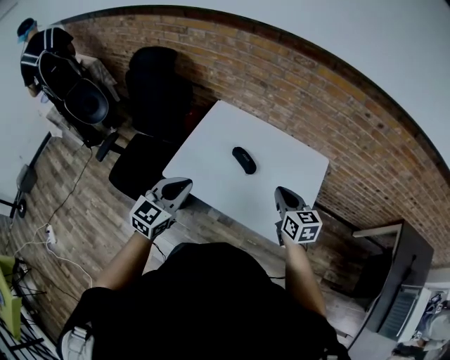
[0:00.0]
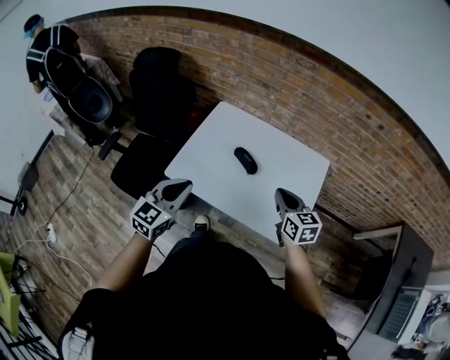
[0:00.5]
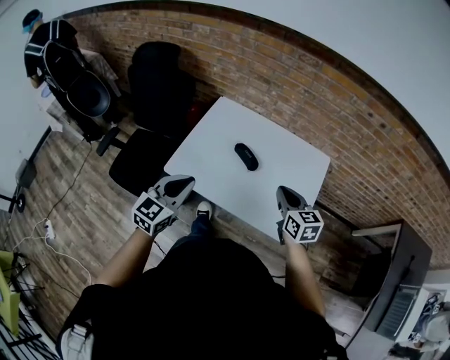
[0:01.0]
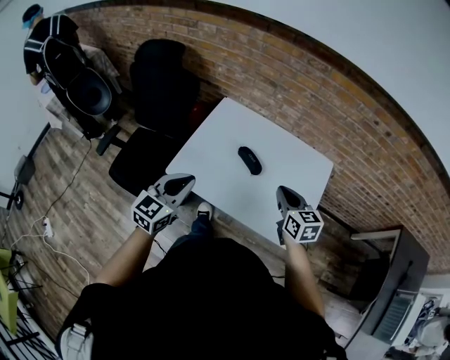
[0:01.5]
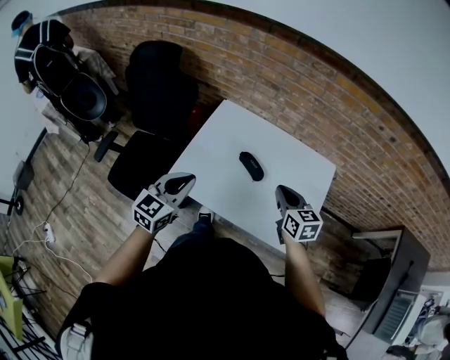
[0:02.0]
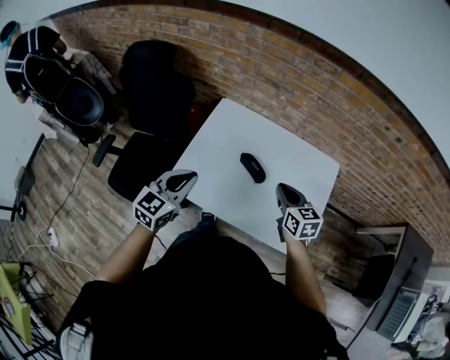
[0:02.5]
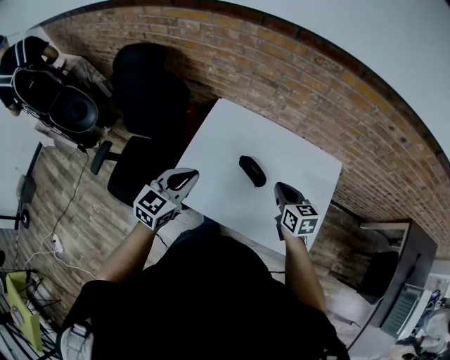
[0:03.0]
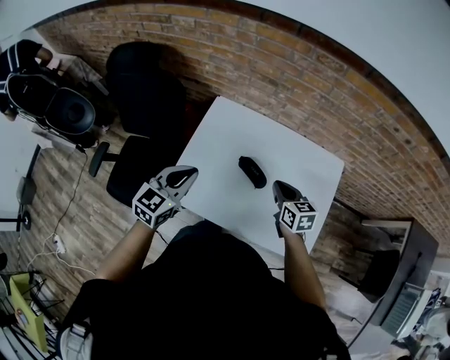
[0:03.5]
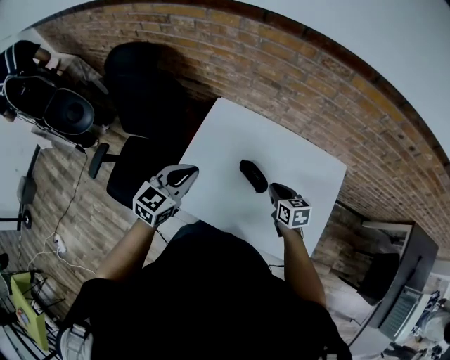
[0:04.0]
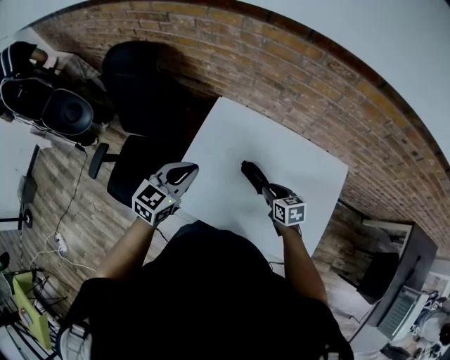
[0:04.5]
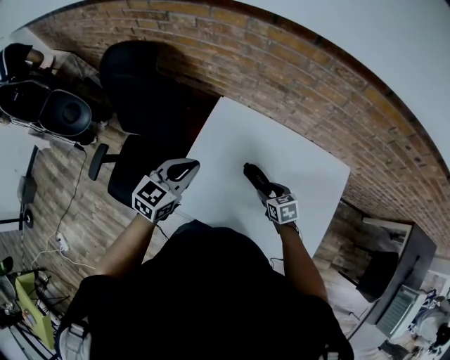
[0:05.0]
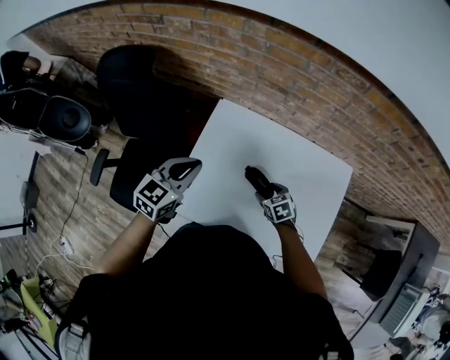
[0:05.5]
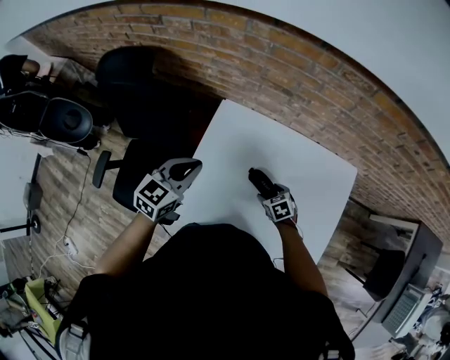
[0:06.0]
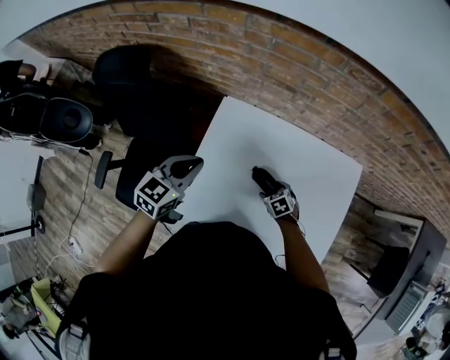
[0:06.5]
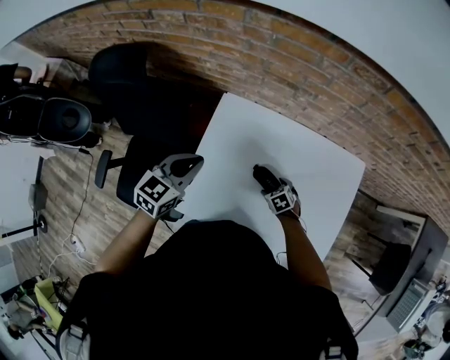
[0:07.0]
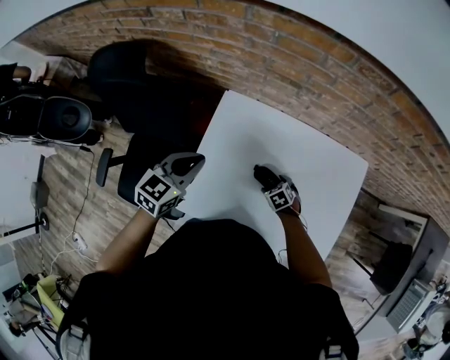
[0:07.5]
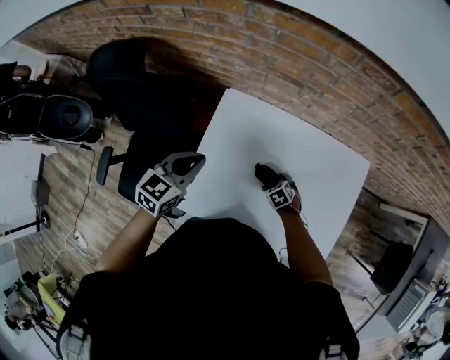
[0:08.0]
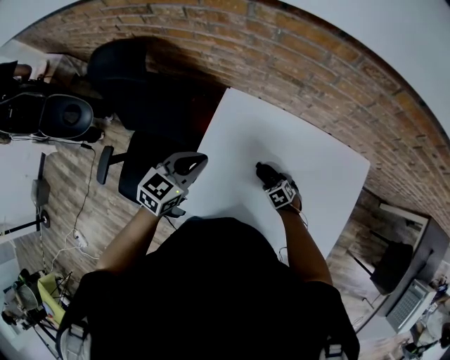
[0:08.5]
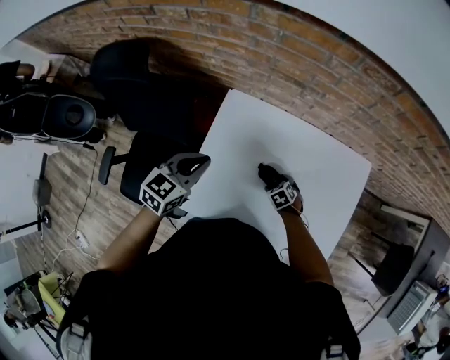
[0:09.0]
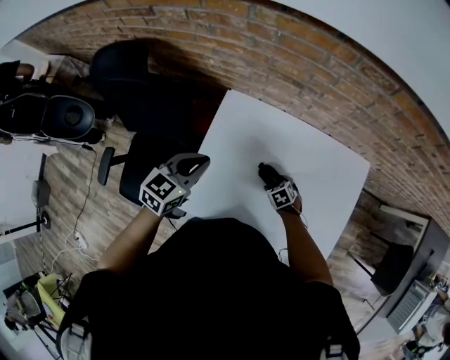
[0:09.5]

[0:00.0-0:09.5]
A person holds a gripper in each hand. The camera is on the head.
0:00.0 to 0:02.0: The left gripper travels forward by roughly 5 cm, while the right gripper goes approximately 10 cm forward and to the left.
0:02.0 to 0:04.0: The left gripper travels forward by roughly 15 cm. Meanwhile the right gripper travels downward and forward by roughly 20 cm.
0:04.0 to 0:05.5: The left gripper moves forward, approximately 10 cm; the right gripper travels downward by approximately 10 cm, swivels roughly 20 degrees, and opens its fingers.
0:05.5 to 0:07.5: The left gripper changes place by some 5 cm. Meanwhile the right gripper heads downward, covering about 10 cm.
0:07.5 to 0:09.5: Both grippers stay about where they are.

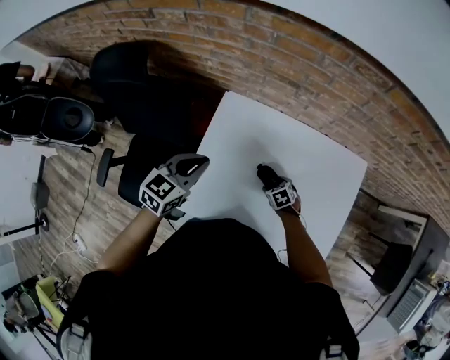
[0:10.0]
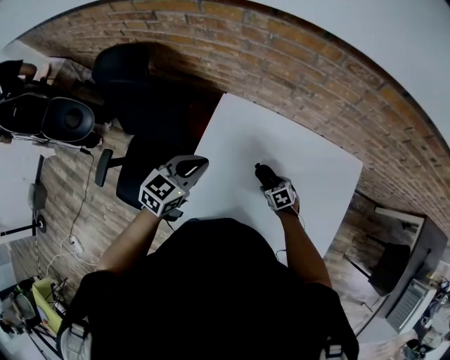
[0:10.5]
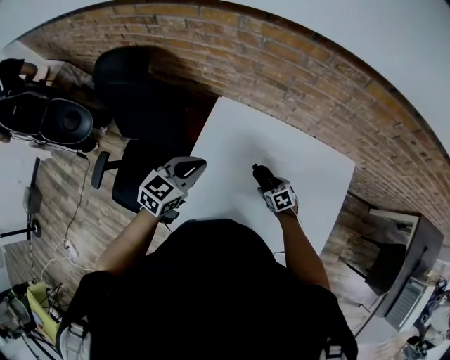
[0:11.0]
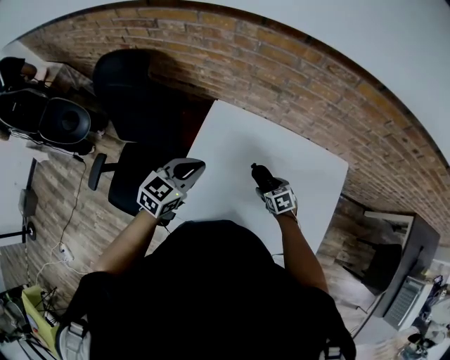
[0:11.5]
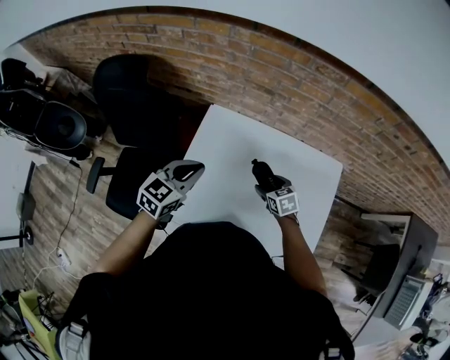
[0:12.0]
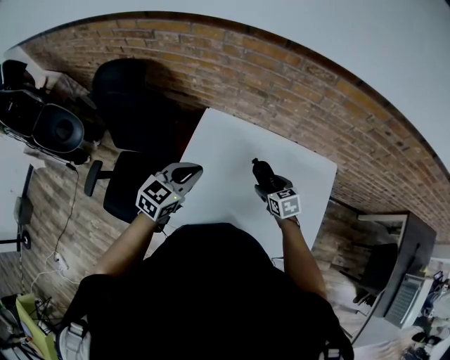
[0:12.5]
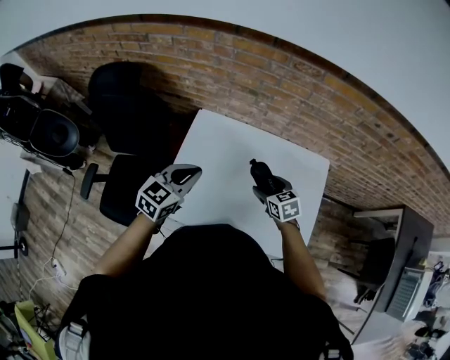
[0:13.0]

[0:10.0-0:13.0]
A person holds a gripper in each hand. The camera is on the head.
0:10.0 to 0:11.5: The left gripper changes place by about 5 cm; the right gripper moves upward, approximately 10 cm.
0:11.5 to 0:13.0: The left gripper moves approximately 5 cm, while the right gripper is displaced upward by approximately 15 cm.

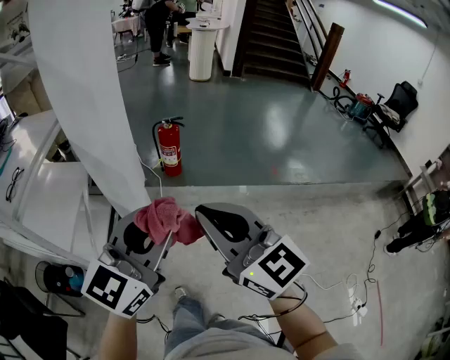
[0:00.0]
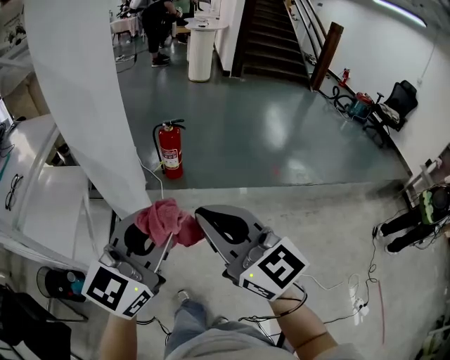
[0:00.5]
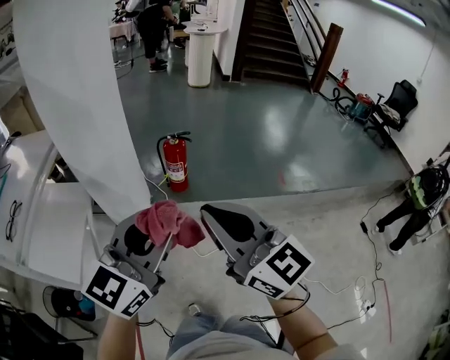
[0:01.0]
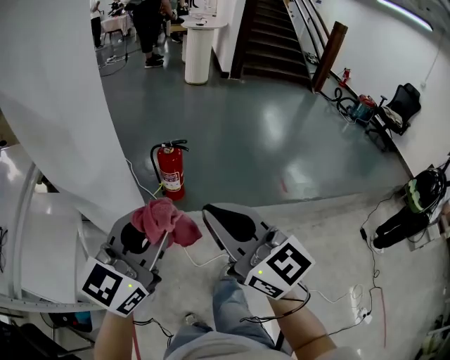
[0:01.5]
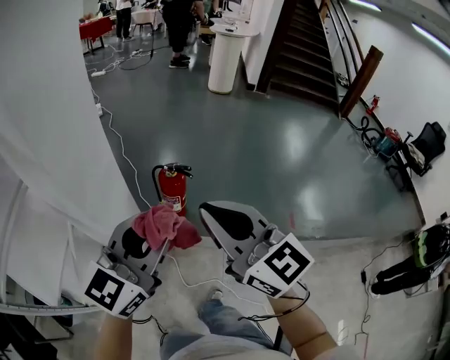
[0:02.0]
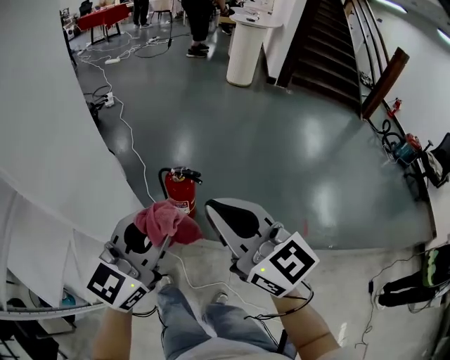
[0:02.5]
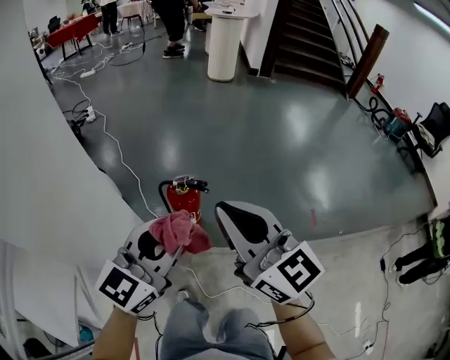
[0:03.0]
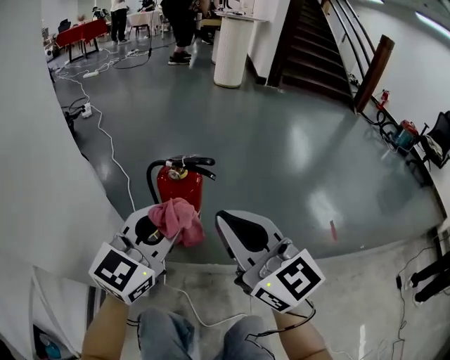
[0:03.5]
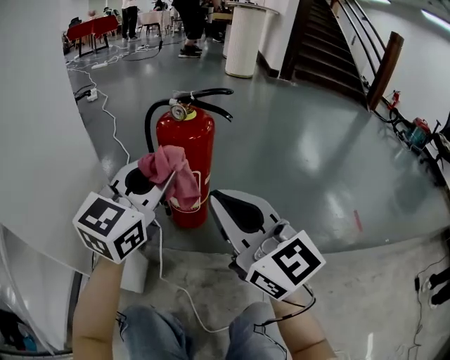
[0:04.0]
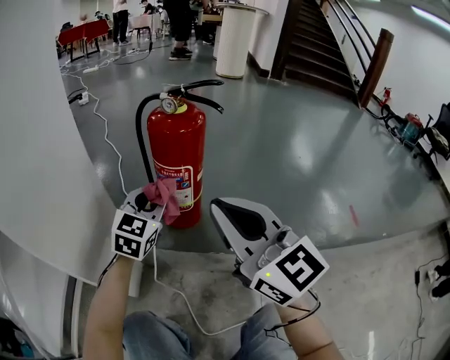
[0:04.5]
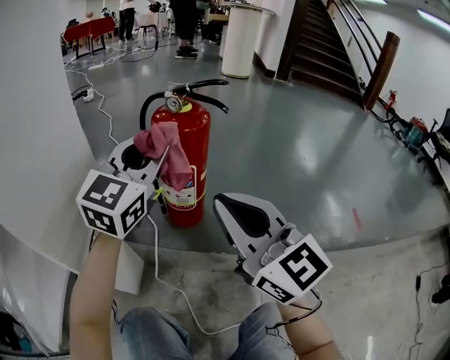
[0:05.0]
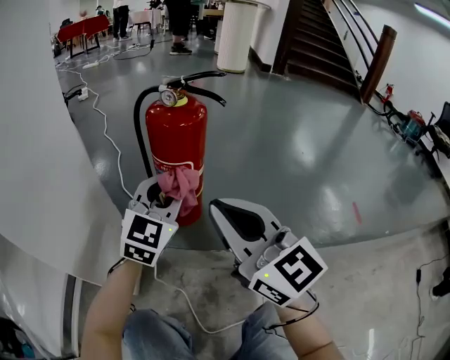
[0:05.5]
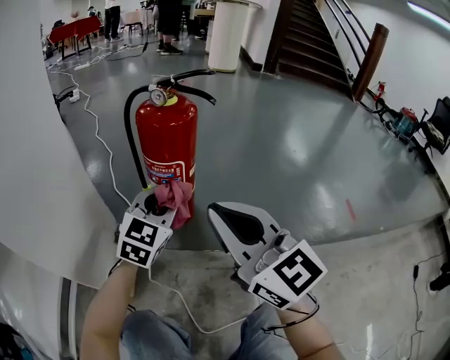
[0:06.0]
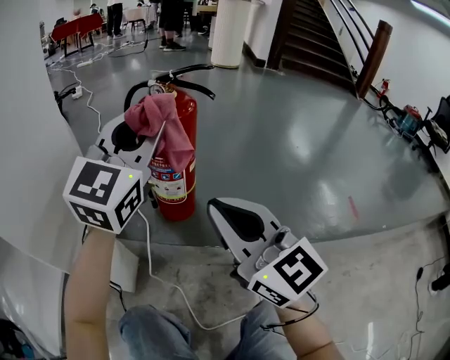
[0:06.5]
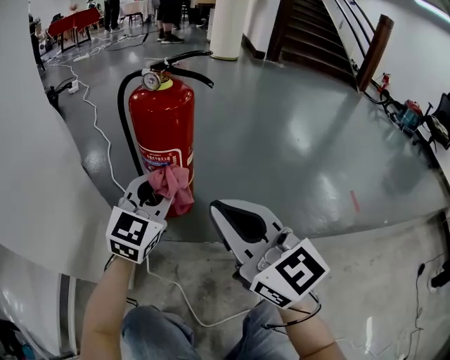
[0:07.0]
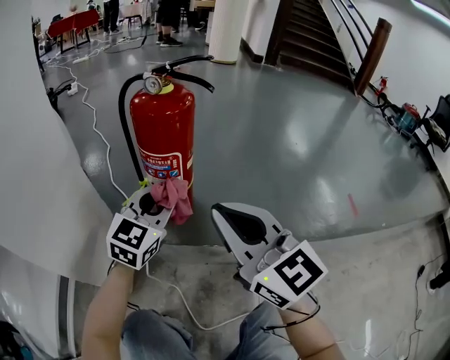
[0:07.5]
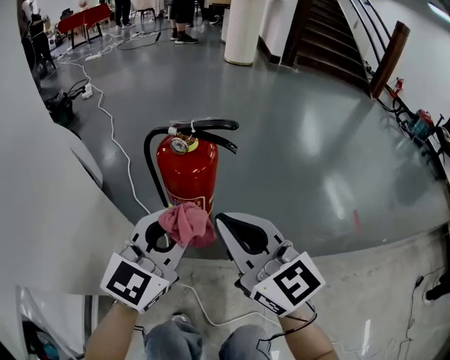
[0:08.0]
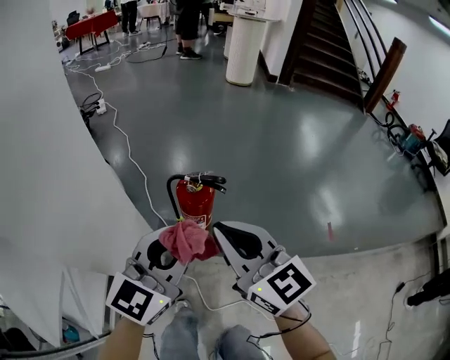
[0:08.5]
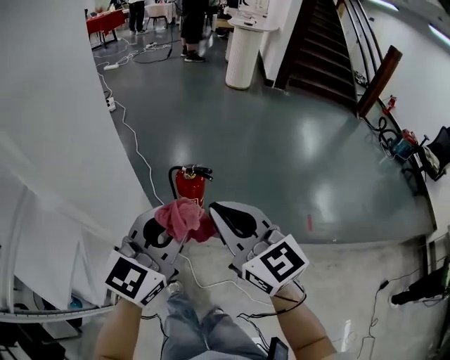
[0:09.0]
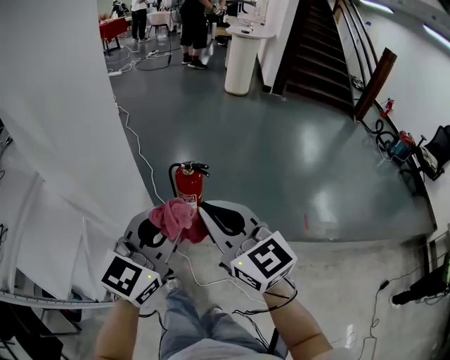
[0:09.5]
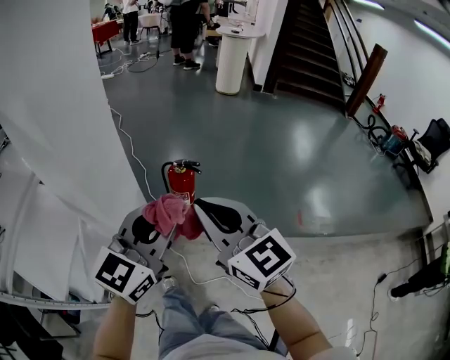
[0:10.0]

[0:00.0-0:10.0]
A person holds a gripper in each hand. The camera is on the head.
0:00.0 to 0:02.0: Both grippers travel together forward, some 35 cm.
0:02.0 to 0:04.0: The two grippers go roughly 50 cm downward and forward.
0:04.0 to 0:06.0: The left gripper moves up and down over about 15 cm, changing direction 2 times. The right gripper shifts by about 5 cm.
0:06.0 to 0:08.0: The right gripper moves upward, about 5 cm; the left gripper goes up and down, approximately 20 cm each way, reversing 2 times.
0:08.0 to 0:10.0: The grippers both shift upward and backward by approximately 50 cm.

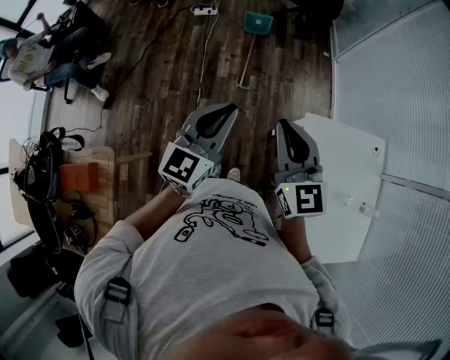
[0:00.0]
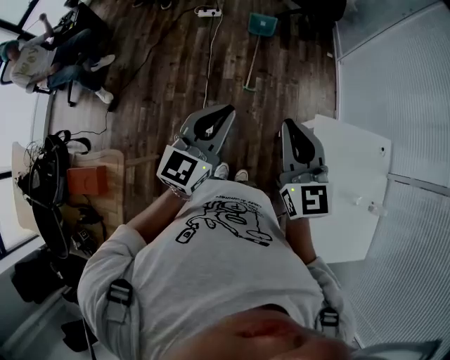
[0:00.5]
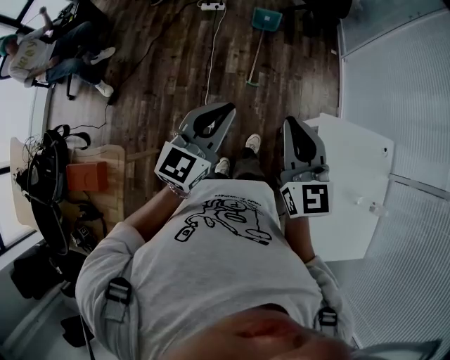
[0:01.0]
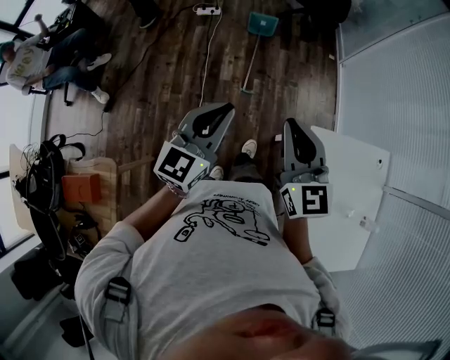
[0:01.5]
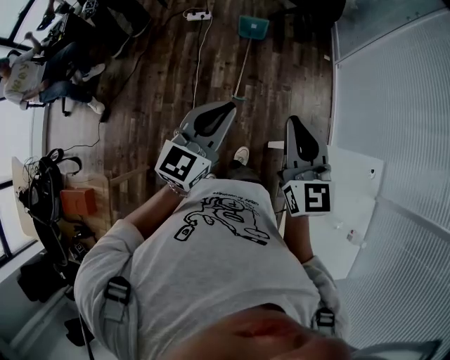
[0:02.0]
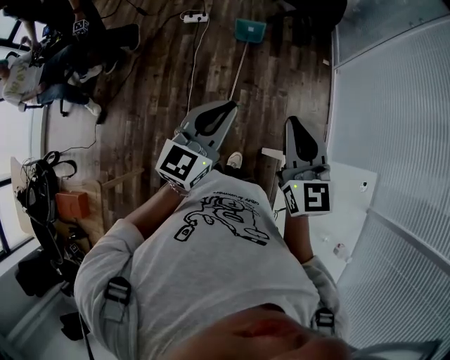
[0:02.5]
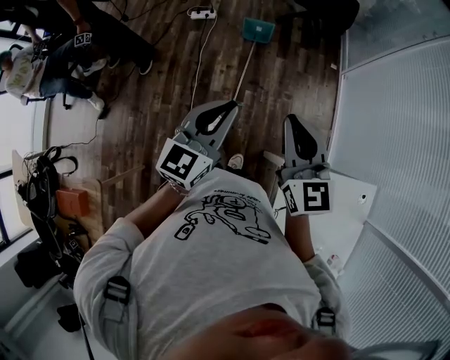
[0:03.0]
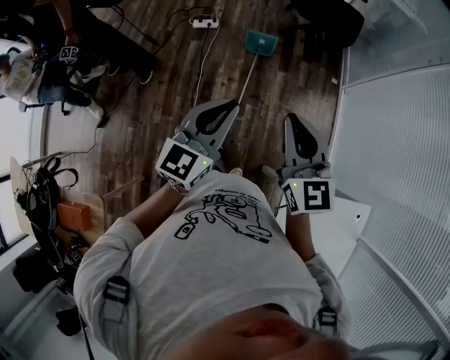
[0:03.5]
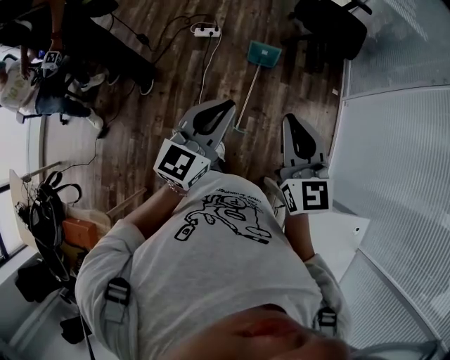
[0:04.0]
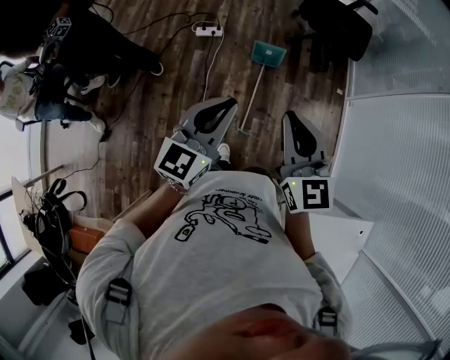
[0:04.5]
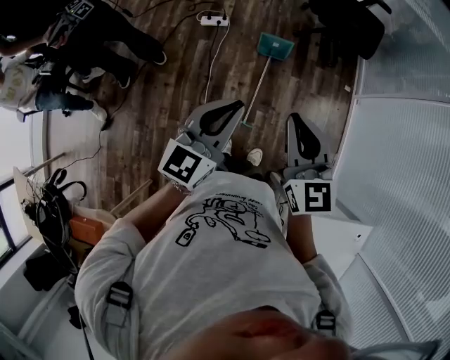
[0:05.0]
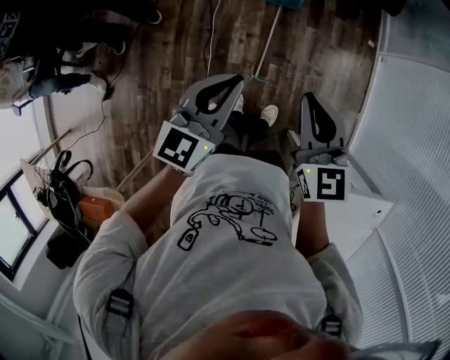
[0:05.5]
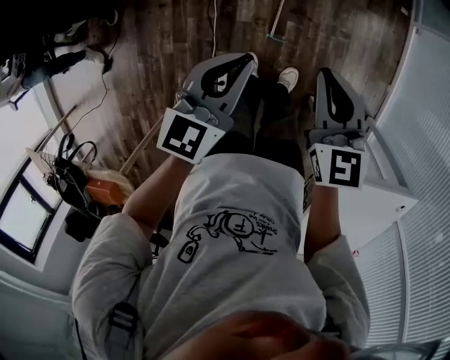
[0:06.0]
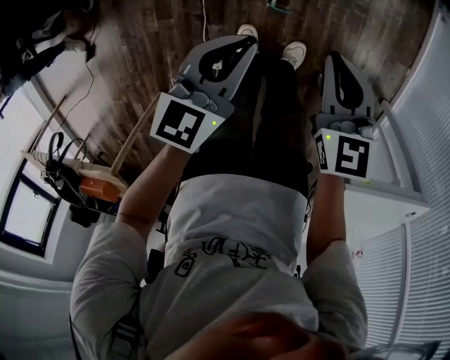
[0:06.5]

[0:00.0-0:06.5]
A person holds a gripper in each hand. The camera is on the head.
0:00.0 to 0:02.0: The two grippers go about 20 cm forward.
0:02.0 to 0:04.5: Both grippers move forward, approximately 35 cm.
0:04.5 to 0:06.5: The grippers both shift downward by approximately 50 cm. The left gripper turns by some 30 degrees. The right gripper turns by some 30 degrees.
